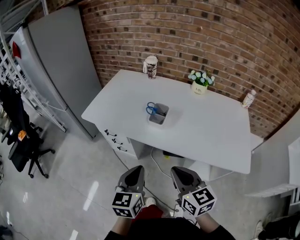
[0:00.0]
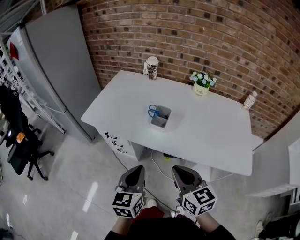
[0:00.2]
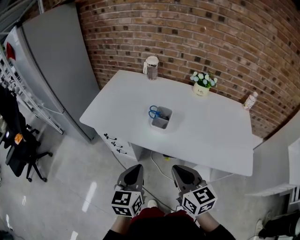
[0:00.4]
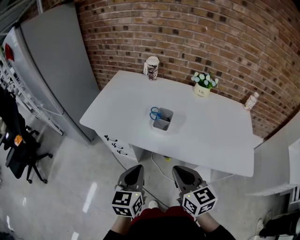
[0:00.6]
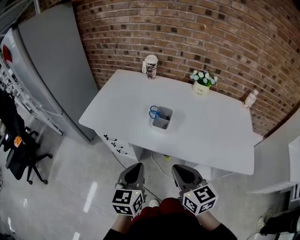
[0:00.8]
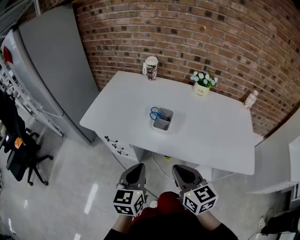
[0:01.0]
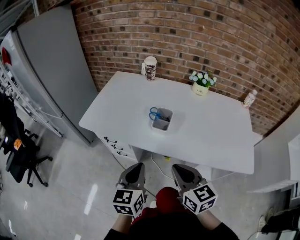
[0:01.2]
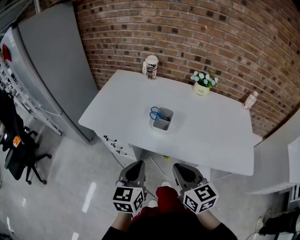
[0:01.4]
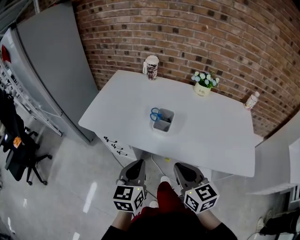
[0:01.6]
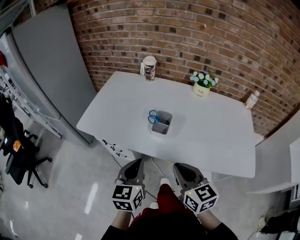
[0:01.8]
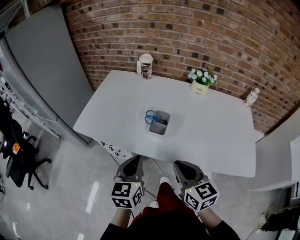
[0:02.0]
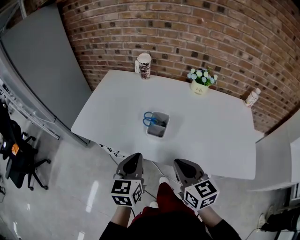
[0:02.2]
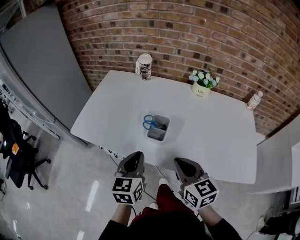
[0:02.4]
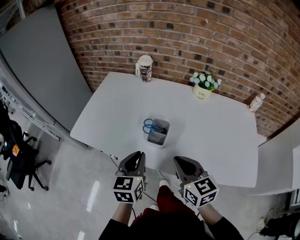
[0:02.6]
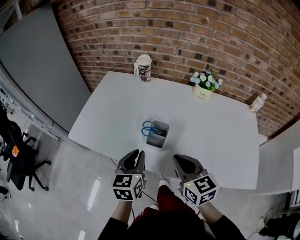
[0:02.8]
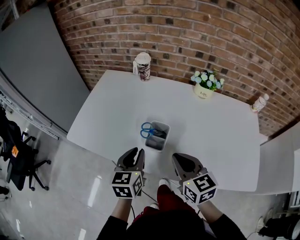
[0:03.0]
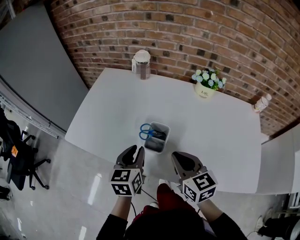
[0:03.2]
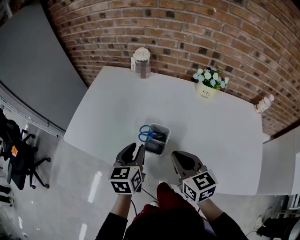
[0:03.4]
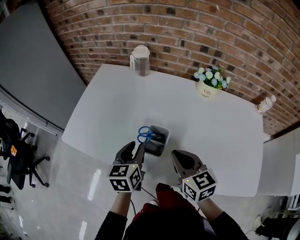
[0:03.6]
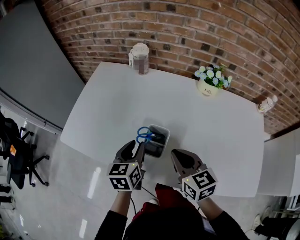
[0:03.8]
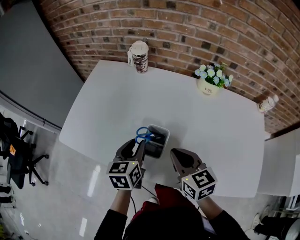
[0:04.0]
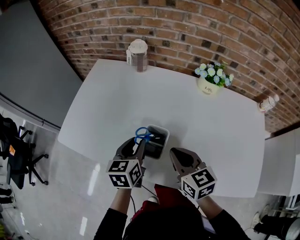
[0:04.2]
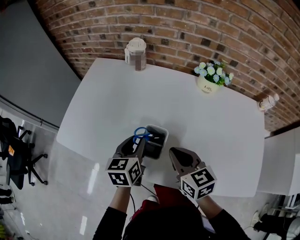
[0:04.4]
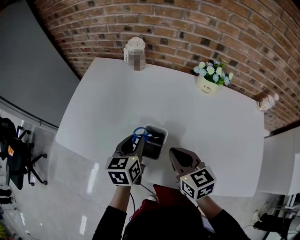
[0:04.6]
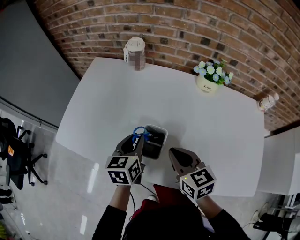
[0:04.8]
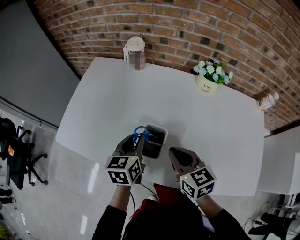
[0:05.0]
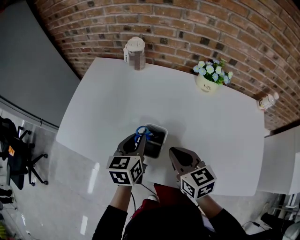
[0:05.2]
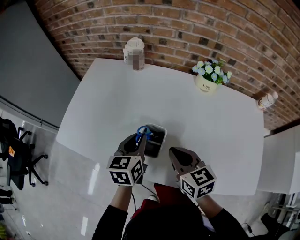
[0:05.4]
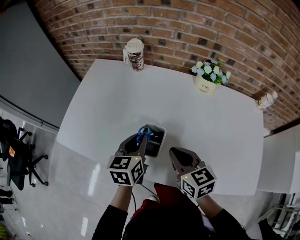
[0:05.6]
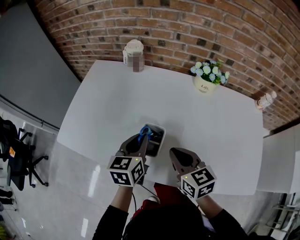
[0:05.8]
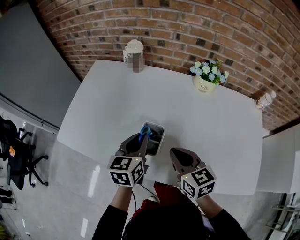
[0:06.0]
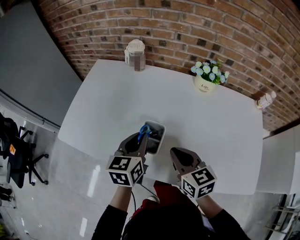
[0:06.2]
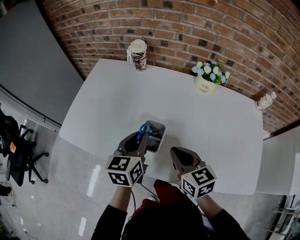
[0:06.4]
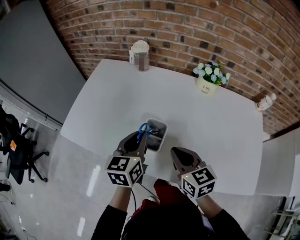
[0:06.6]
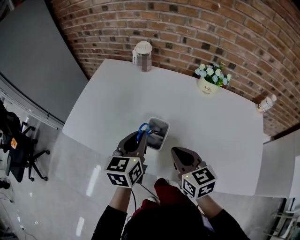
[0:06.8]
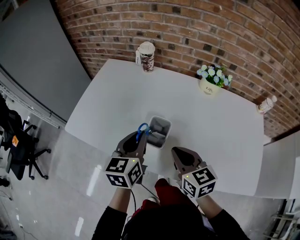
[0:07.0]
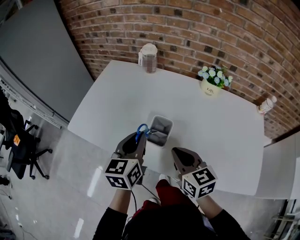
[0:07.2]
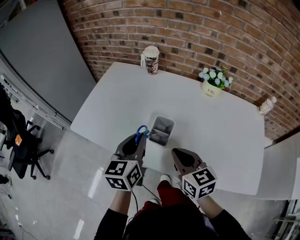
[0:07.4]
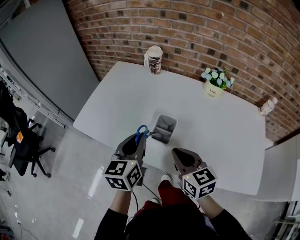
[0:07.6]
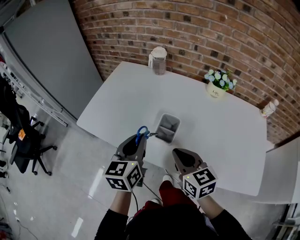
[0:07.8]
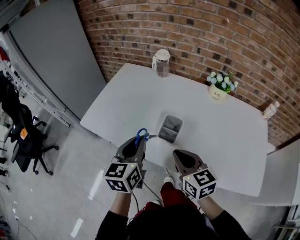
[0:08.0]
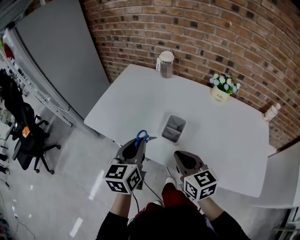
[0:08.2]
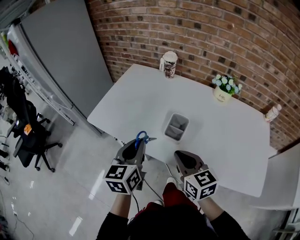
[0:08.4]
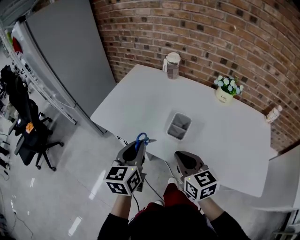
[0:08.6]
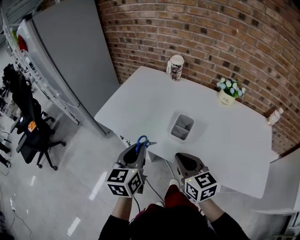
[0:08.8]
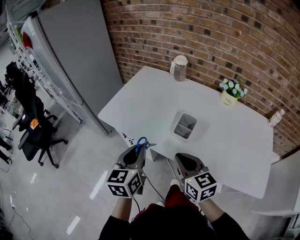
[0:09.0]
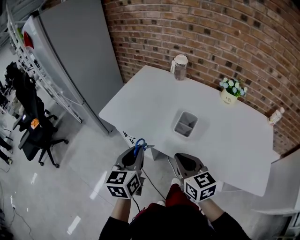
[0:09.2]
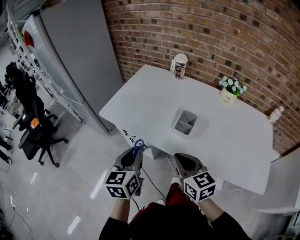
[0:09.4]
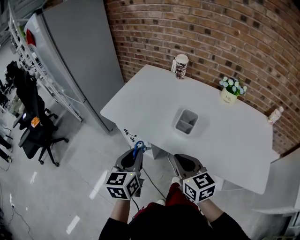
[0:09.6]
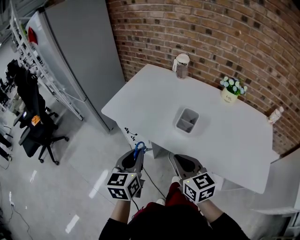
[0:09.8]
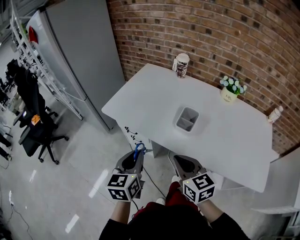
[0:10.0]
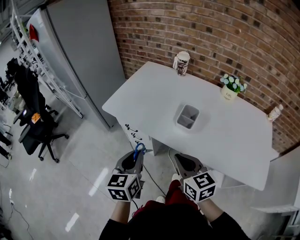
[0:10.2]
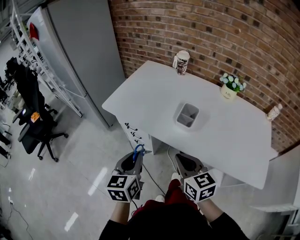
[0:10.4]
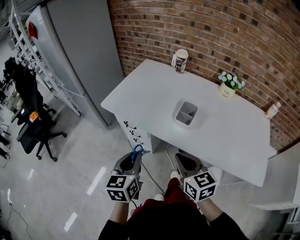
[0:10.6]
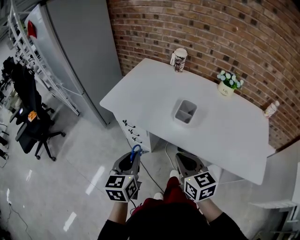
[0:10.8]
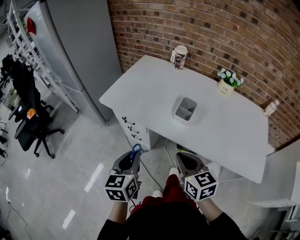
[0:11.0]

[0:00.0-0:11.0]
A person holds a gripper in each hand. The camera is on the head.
0:00.0 to 0:01.6: The grippers both shift forward by approximately 10 cm.
0:01.6 to 0:03.2: The two grippers go approximately 15 cm forward. The left gripper opens its fingers.
0:03.2 to 0:04.8: The right gripper shifts by some 5 cm. The left gripper travels forward by roughly 5 cm.
0:04.8 to 0:06.2: The grippers stay close to where they were, moving slightly.
0:06.2 to 0:07.8: The left gripper moves to the left, backward and upward, approximately 10 cm; the right gripper is displaced to the left and backward by about 10 cm.
0:07.8 to 0:09.4: The two grippers go about 15 cm to the left and backward.
0:09.4 to 0:11.0: Both grippers travel together backward, roughly 5 cm.

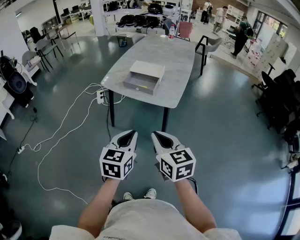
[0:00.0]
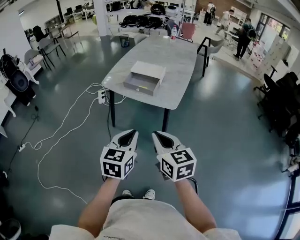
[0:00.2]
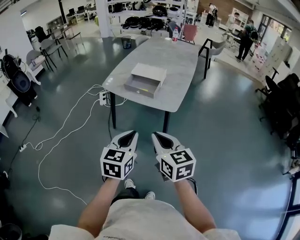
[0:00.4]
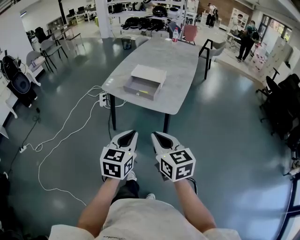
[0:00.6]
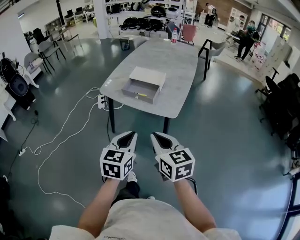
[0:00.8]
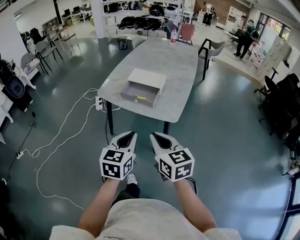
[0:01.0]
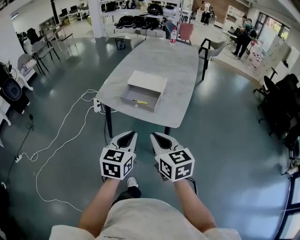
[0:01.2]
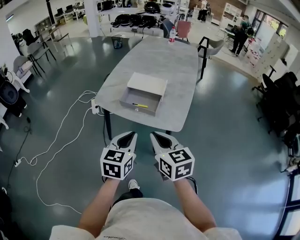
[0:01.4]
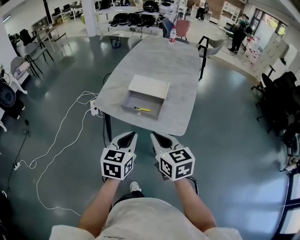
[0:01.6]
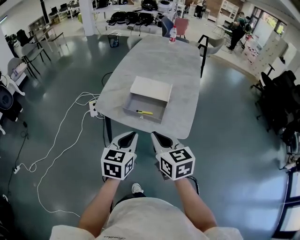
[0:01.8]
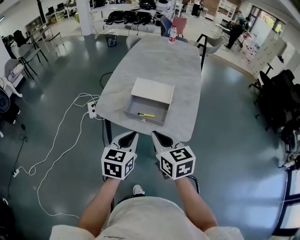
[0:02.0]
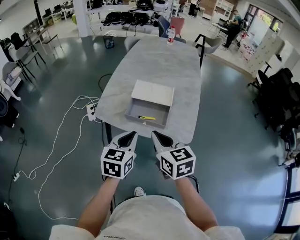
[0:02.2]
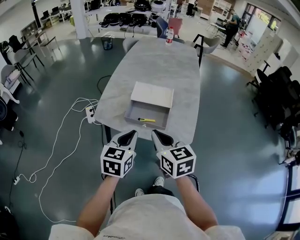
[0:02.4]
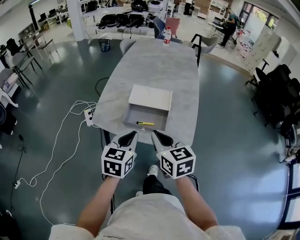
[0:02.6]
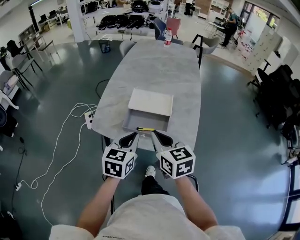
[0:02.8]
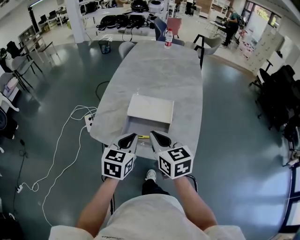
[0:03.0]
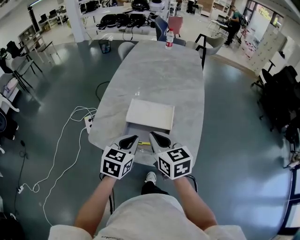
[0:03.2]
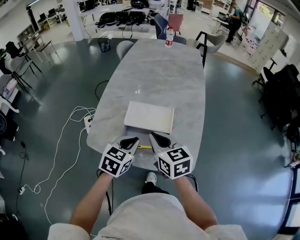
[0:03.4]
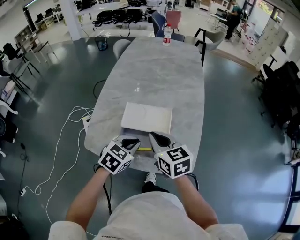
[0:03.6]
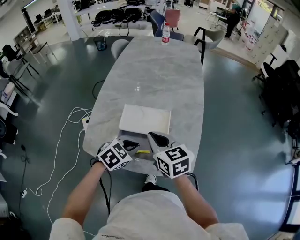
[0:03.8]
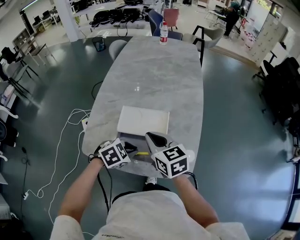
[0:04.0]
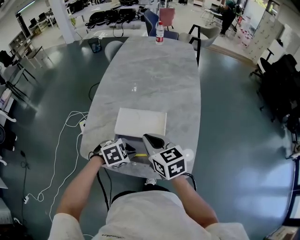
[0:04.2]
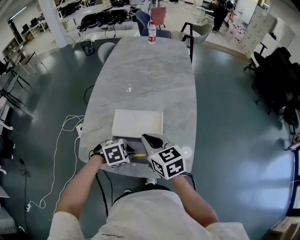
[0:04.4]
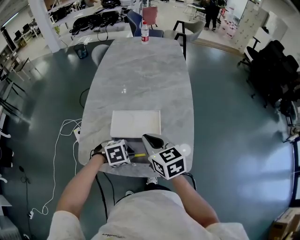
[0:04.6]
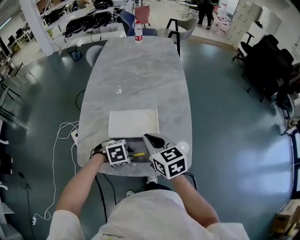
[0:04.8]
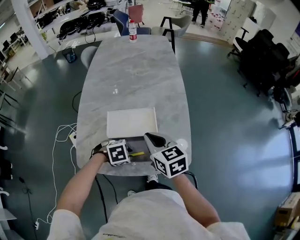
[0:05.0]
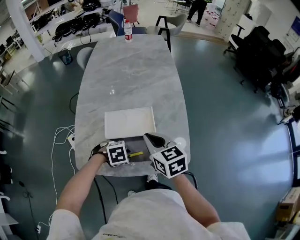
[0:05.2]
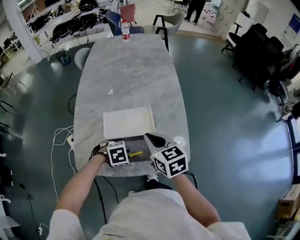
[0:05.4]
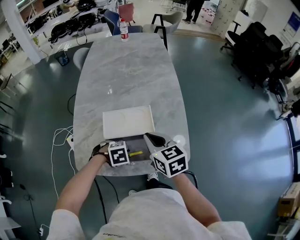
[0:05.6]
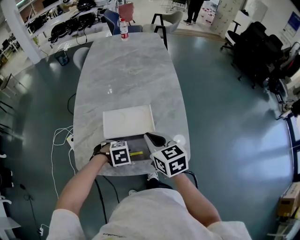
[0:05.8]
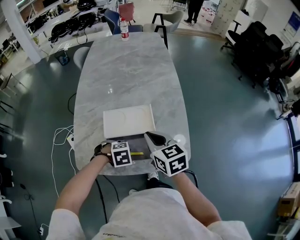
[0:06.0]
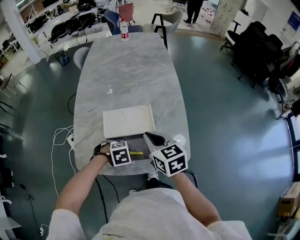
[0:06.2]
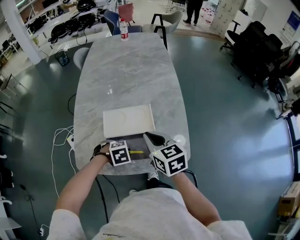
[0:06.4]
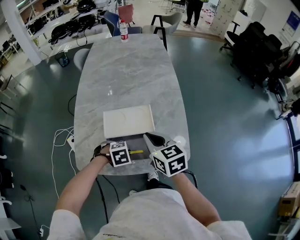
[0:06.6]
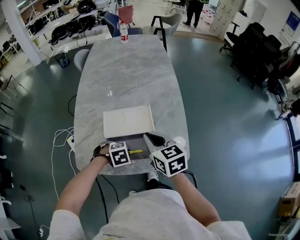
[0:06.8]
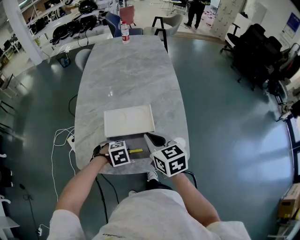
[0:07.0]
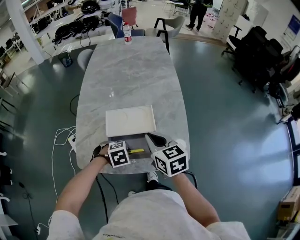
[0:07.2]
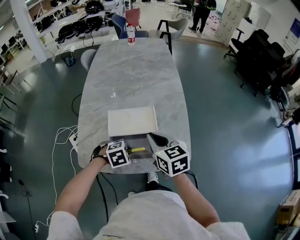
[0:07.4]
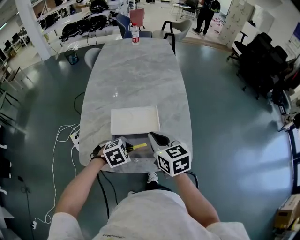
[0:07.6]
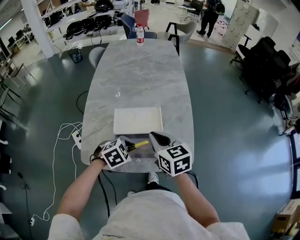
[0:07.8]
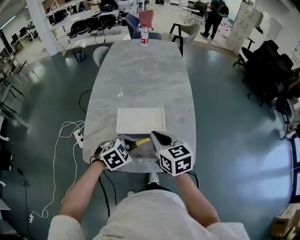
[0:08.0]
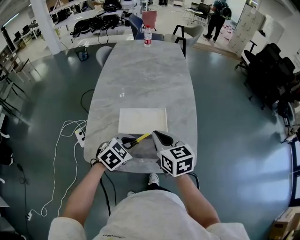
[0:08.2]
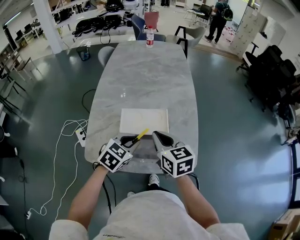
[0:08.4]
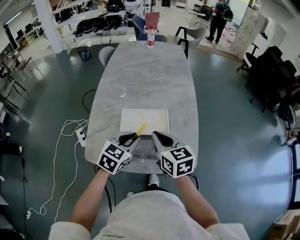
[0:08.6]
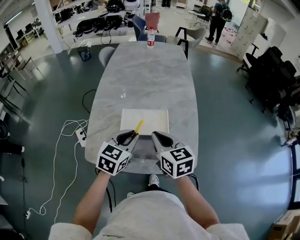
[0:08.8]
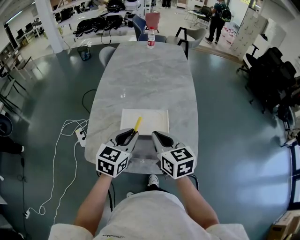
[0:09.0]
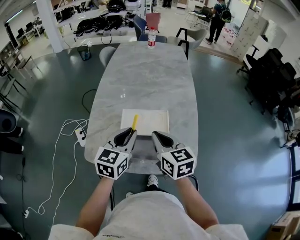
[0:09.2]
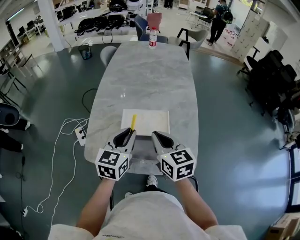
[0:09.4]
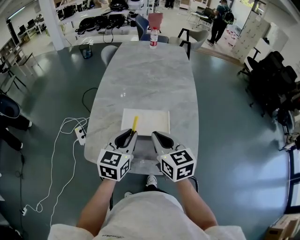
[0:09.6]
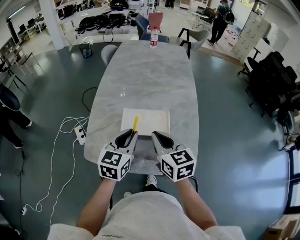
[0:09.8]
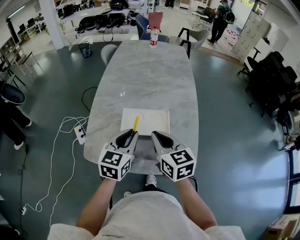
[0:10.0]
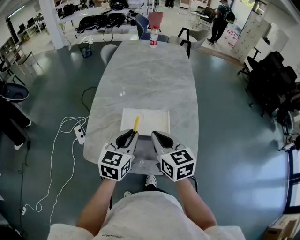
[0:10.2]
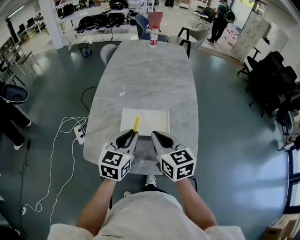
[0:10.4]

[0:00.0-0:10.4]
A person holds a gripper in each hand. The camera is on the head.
0:00.0 to 0:01.4: Both grippers travel together forward, about 20 cm.
0:01.4 to 0:03.0: Both grippers travel together forward, some 25 cm.
0:03.0 to 0:04.4: The left gripper shifts some 15 cm downward, and tilts its fingers about 40 degrees downward. The right gripper shifts by approximately 10 cm.
0:04.4 to 0:06.0: The left gripper changes its angle by approximately 20 degrees.
0:06.0 to 0:07.4: There are only small adjustments of the grippers.
0:07.4 to 0:09.0: The left gripper goes roughly 15 cm upward, and tilts its fingers roughly 50 degrees upward.
0:09.0 to 0:10.4: The grippers stay close to where they were, moving slightly.

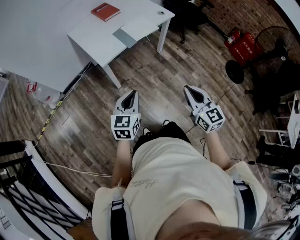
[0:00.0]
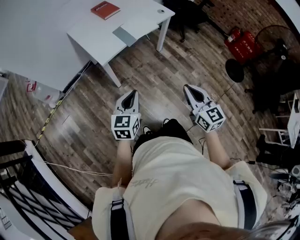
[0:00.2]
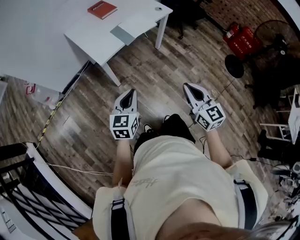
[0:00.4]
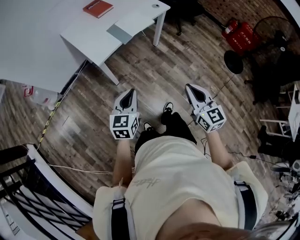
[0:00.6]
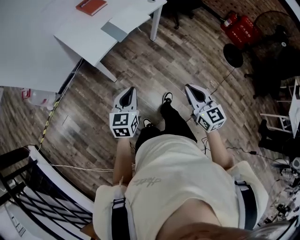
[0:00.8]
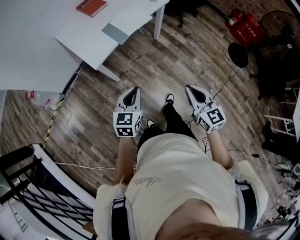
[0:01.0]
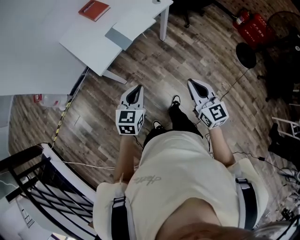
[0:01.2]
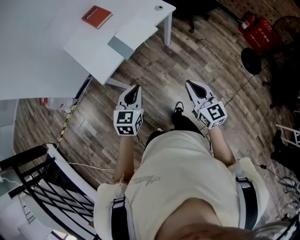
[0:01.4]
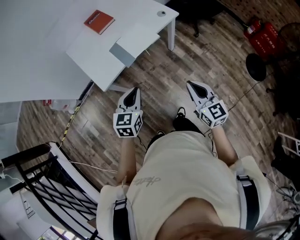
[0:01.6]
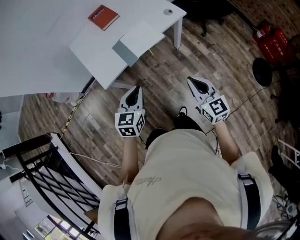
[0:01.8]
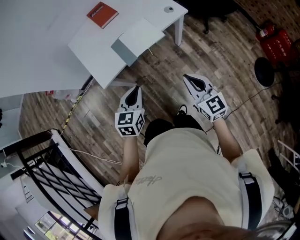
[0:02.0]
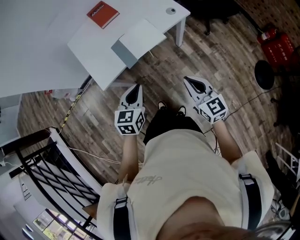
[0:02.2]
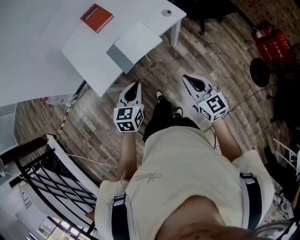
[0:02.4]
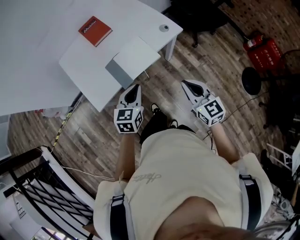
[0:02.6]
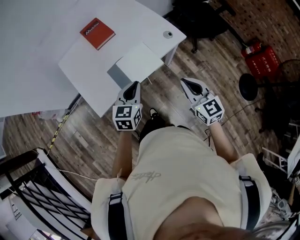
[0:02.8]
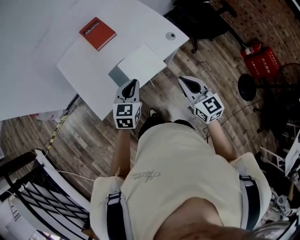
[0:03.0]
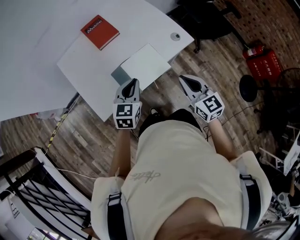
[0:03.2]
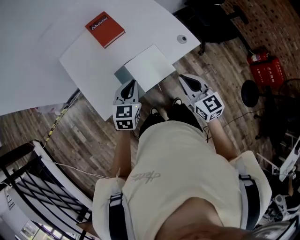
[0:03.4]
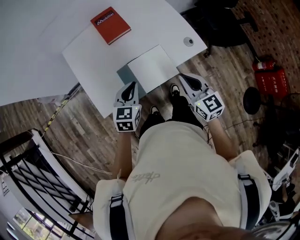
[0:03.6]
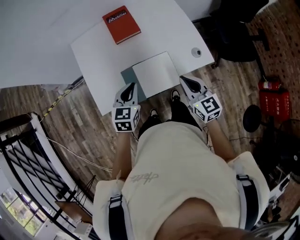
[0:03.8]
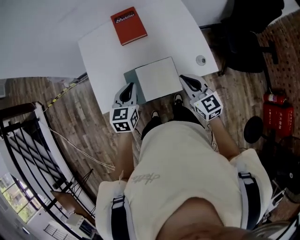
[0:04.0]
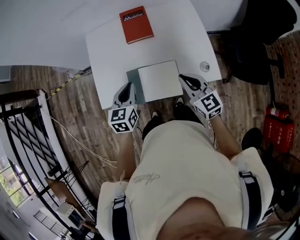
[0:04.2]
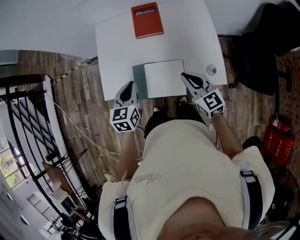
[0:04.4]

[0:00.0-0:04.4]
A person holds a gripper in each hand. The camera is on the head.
0:00.0 to 0:01.4: Both grippers travel together forward and to the right, approximately 15 cm.
0:01.4 to 0:03.0: Both grippers travel together forward, about 30 cm.
0:03.0 to 0:04.4: The left gripper moves about 10 cm, and changes its angle by roughly 50 degrees, while the right gripper moves about 20 cm, and turns by about 40 degrees.
